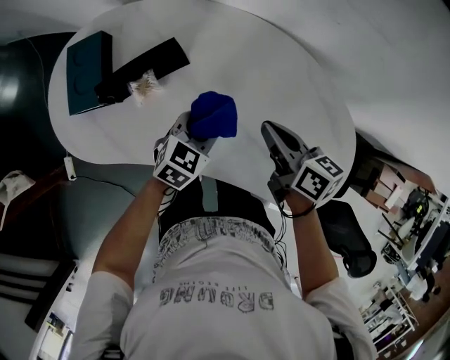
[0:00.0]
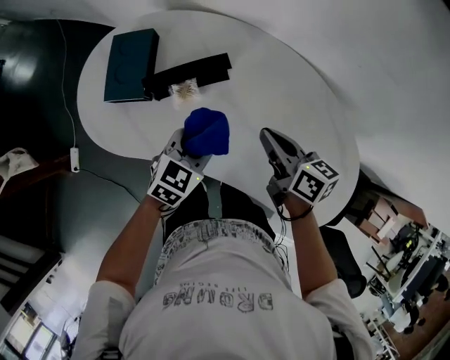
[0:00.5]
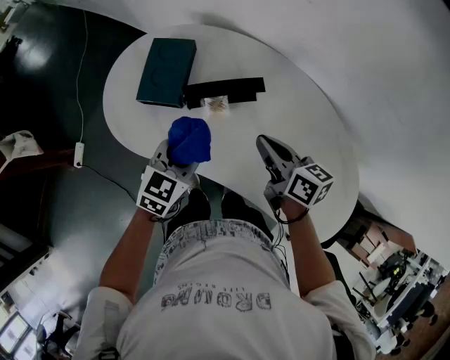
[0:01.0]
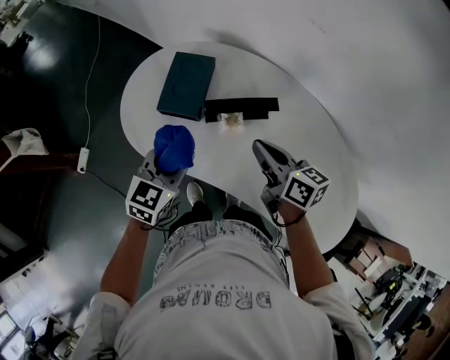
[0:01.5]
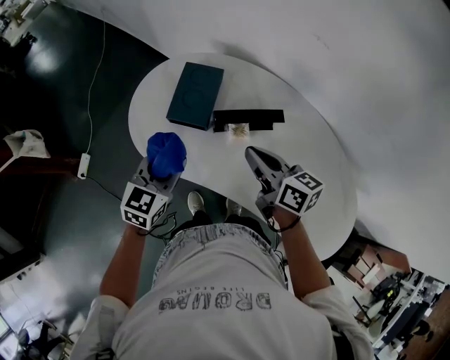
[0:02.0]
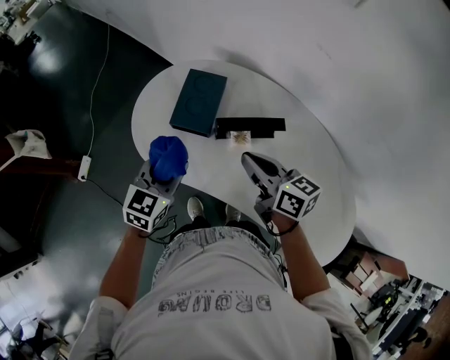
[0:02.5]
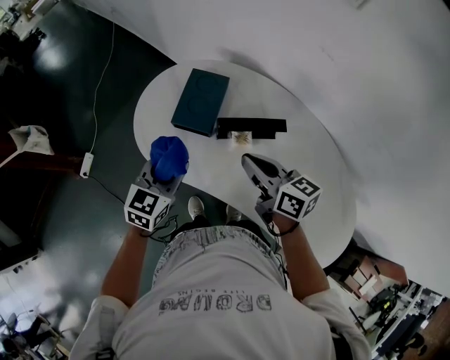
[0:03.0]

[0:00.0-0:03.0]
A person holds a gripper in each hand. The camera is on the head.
0:00.0 to 0:01.5: The right gripper goes about 25 cm to the left, and swivels some 20 degrees; the left gripper goes some 35 cm to the left and upward, and rotates about 30 degrees.
0:01.5 to 0:03.0: Both grippers travel together to the left, roughly 5 cm.

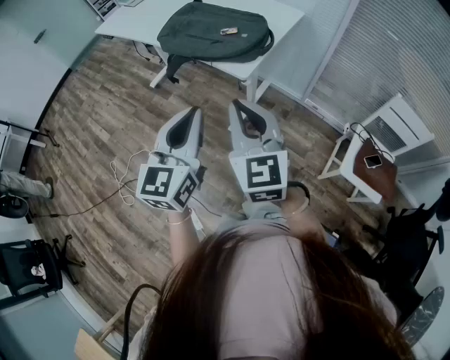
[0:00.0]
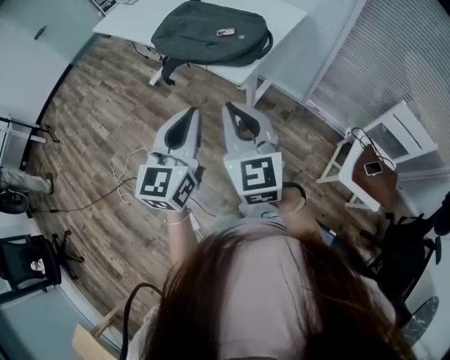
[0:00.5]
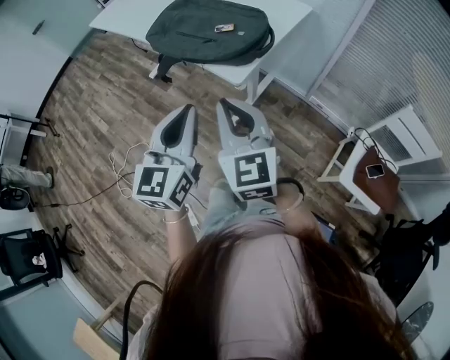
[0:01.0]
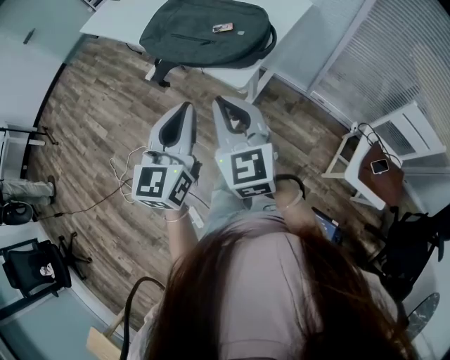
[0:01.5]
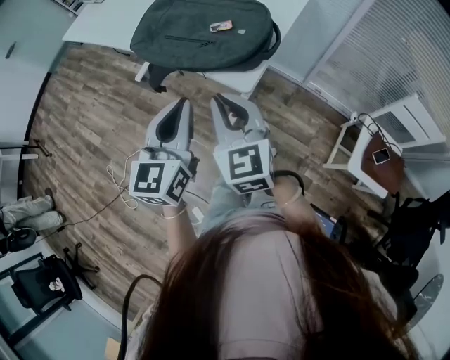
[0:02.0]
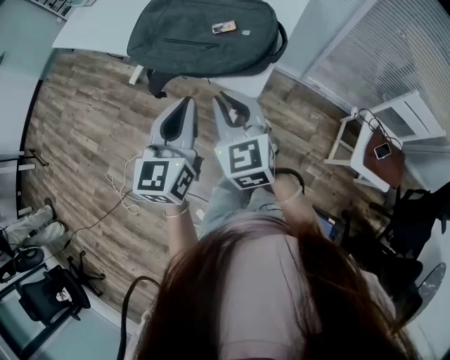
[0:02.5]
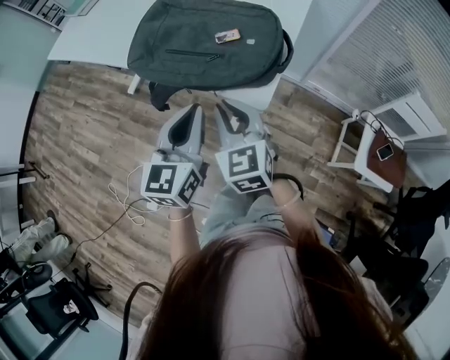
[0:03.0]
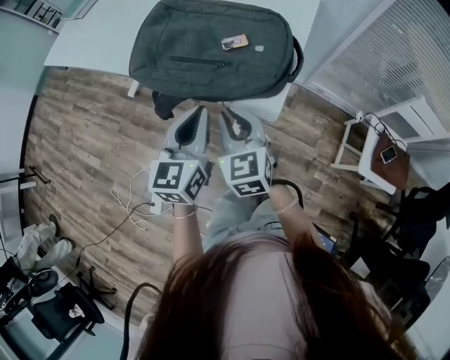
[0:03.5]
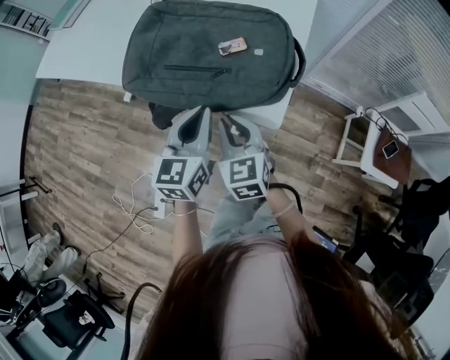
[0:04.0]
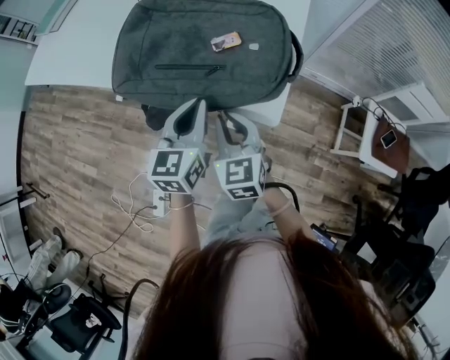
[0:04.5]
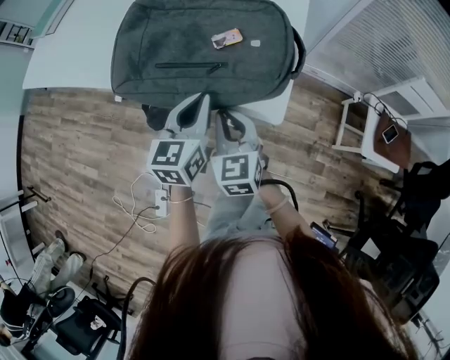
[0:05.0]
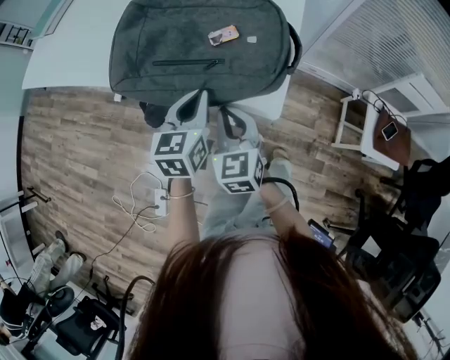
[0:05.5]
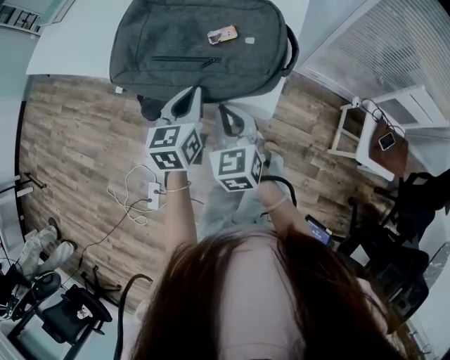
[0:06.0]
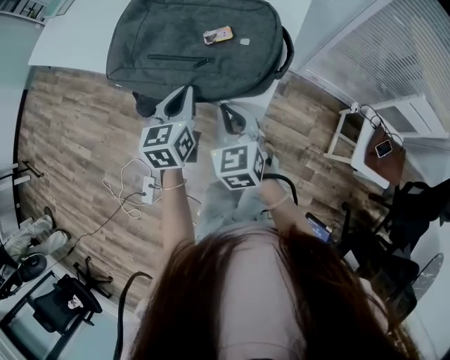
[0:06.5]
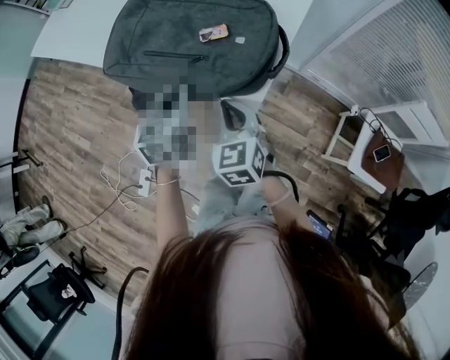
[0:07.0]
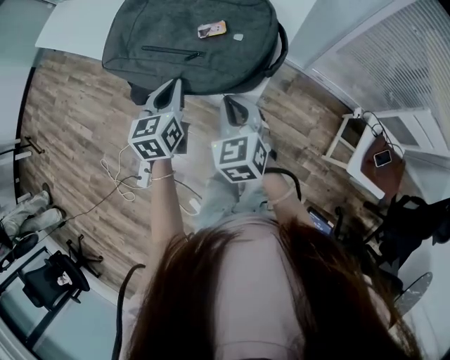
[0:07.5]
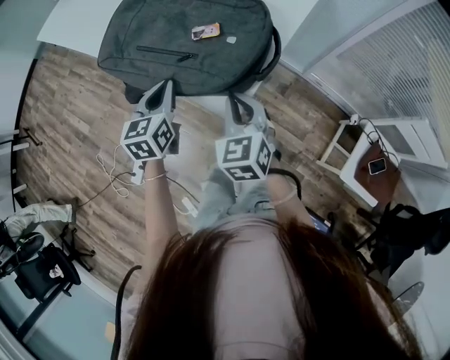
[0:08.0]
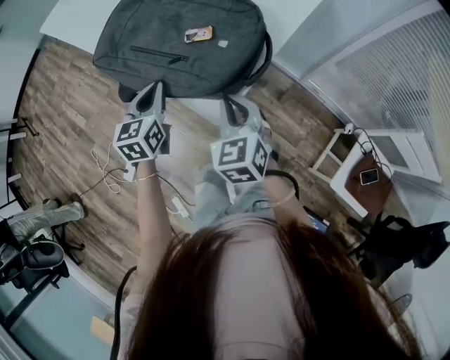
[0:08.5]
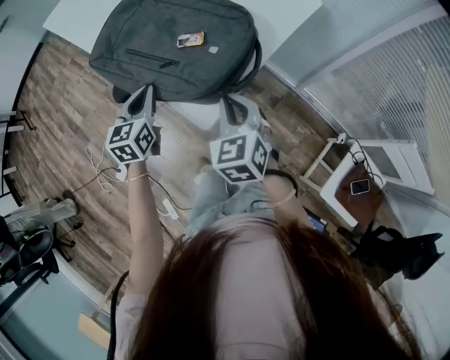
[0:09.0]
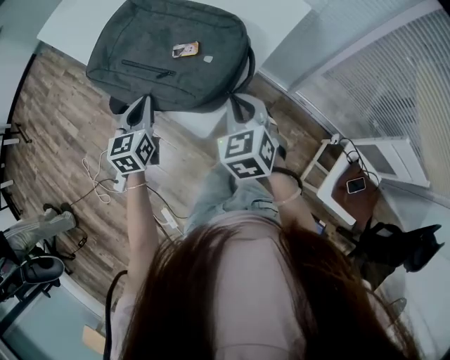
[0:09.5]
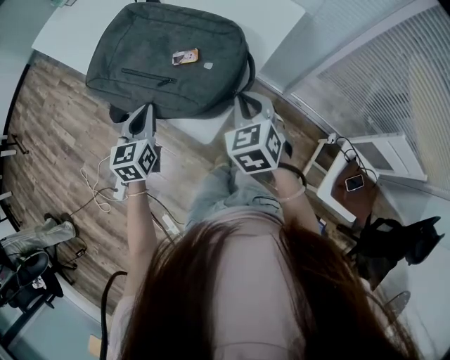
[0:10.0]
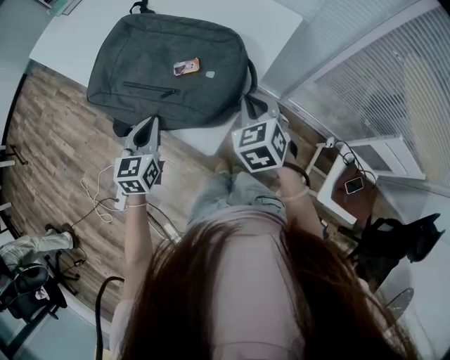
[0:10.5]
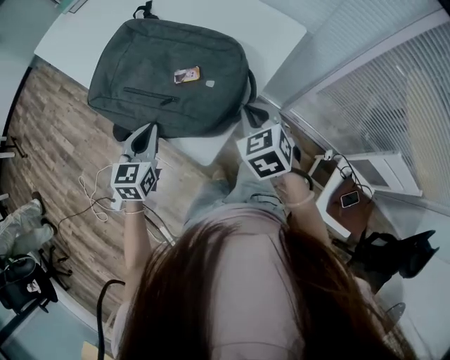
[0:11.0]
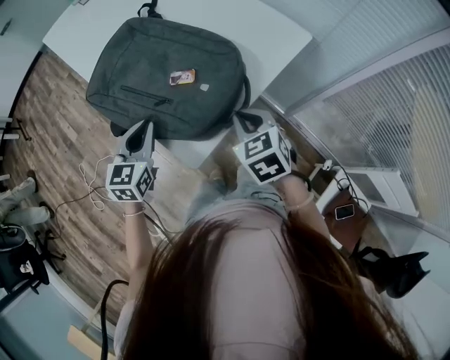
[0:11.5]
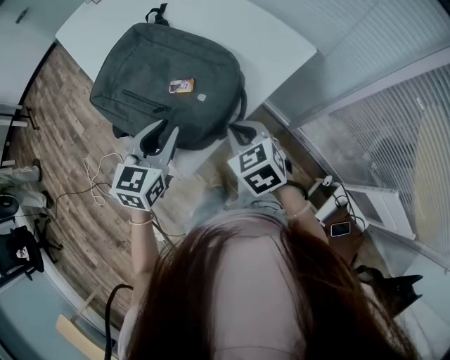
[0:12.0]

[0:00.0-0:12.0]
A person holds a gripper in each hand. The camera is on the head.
0:00.0 to 0:02.0: The left gripper is displaced forward by approximately 20 cm; the right gripper shifts some 20 cm forward and downward.
0:02.0 to 0:04.0: The right gripper goes approximately 20 cm downward, forward and to the left, while the left gripper goes roughly 20 cm forward and downward.
0:04.0 to 0:06.0: The left gripper ends up some 5 cm from where it was.
0:06.0 to 0:08.0: The right gripper moves to the right, some 10 cm.
0:08.0 to 0:10.0: The right gripper moves to the right and forward, roughly 10 cm.
0:10.0 to 0:12.0: The left gripper shifts some 15 cm to the right and upward, and opens up, while the right gripper turns by roughly 30 degrees.

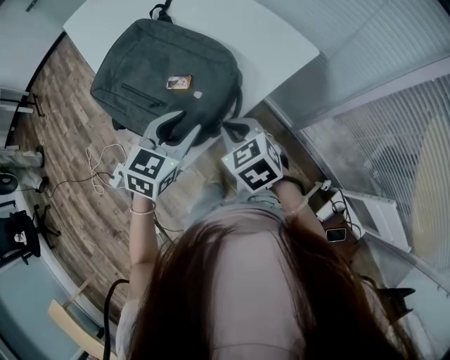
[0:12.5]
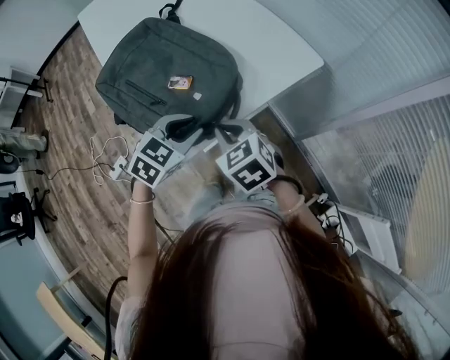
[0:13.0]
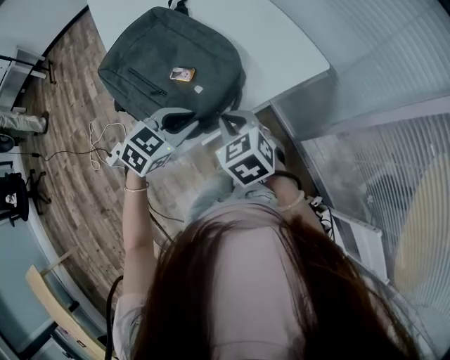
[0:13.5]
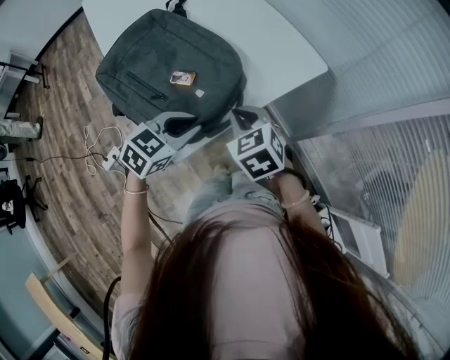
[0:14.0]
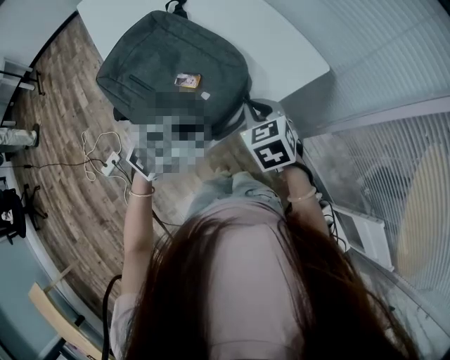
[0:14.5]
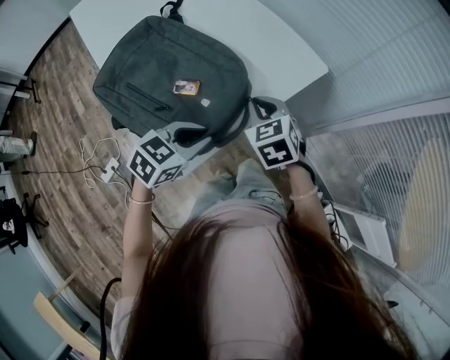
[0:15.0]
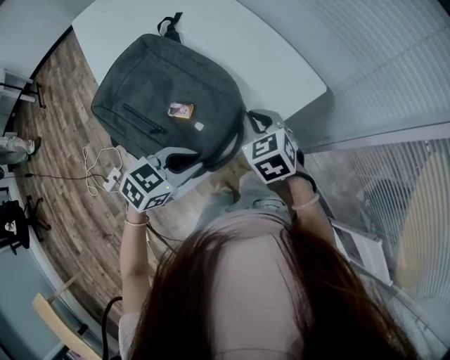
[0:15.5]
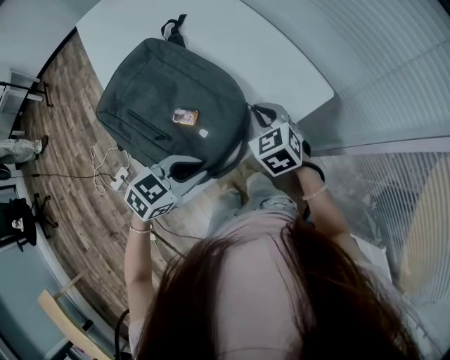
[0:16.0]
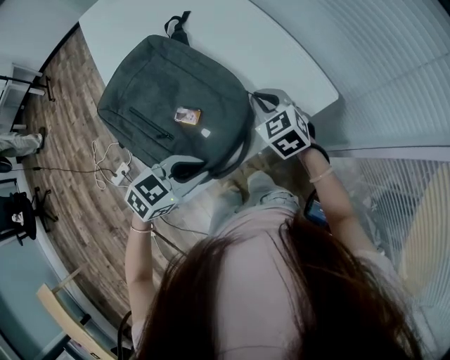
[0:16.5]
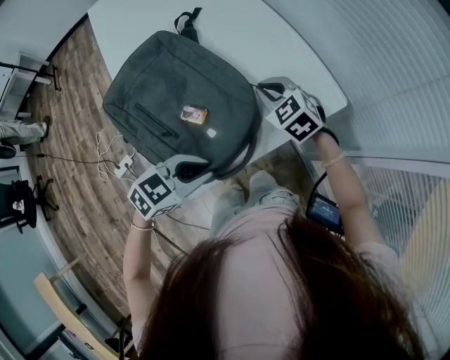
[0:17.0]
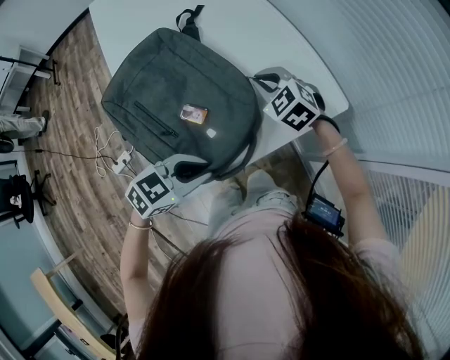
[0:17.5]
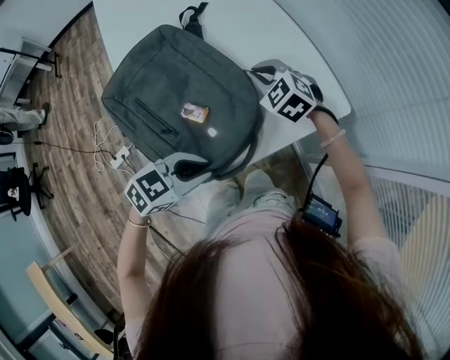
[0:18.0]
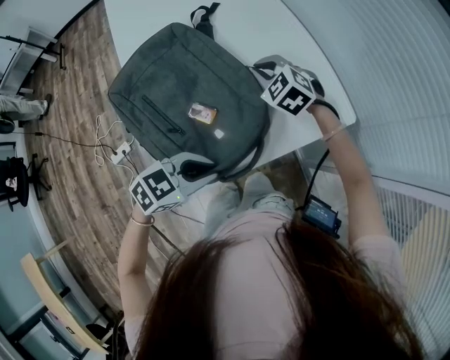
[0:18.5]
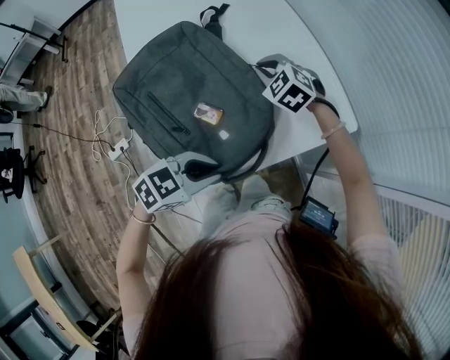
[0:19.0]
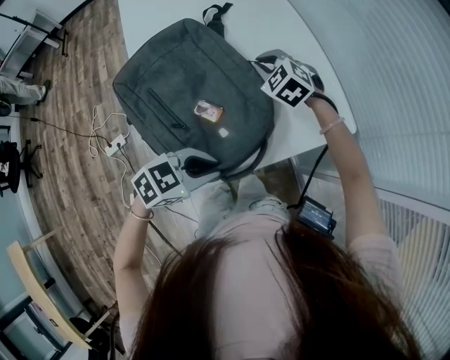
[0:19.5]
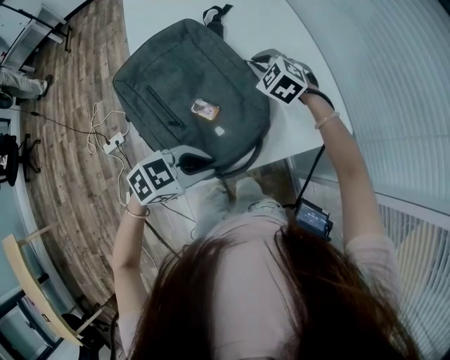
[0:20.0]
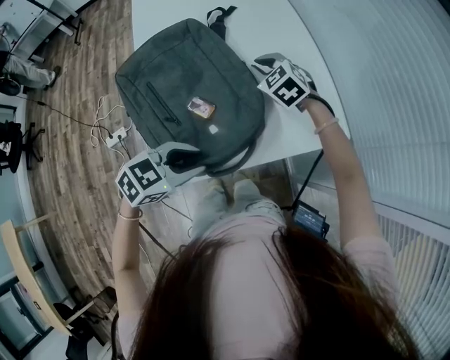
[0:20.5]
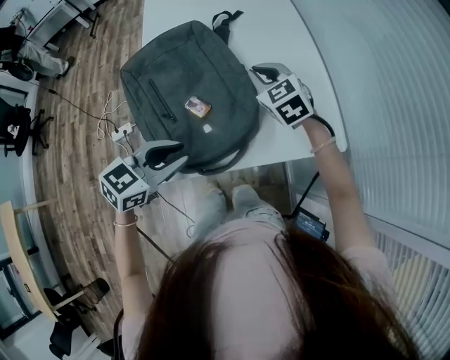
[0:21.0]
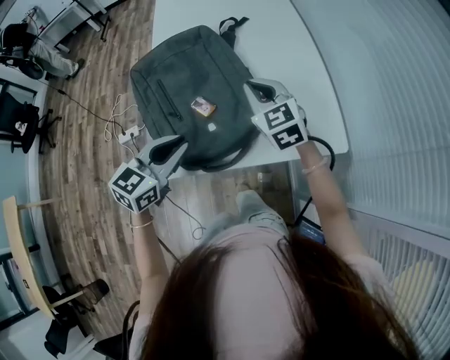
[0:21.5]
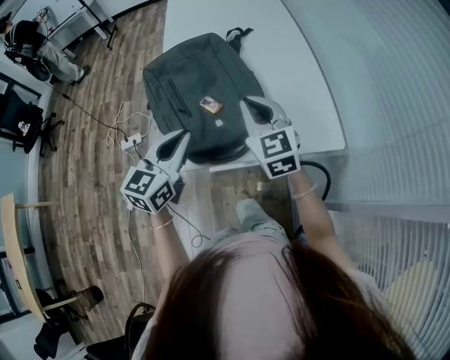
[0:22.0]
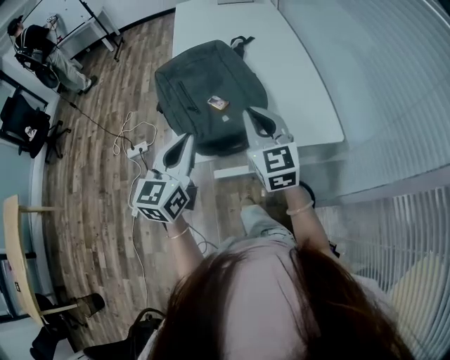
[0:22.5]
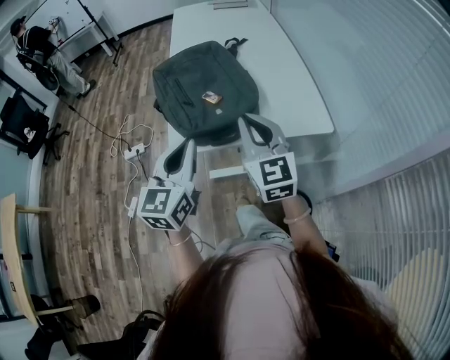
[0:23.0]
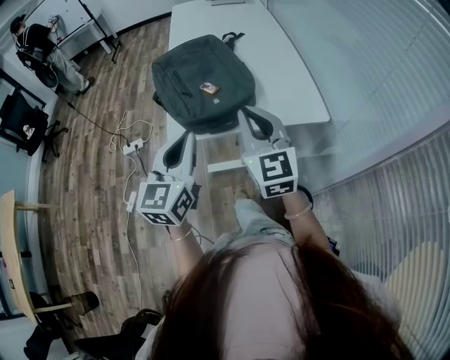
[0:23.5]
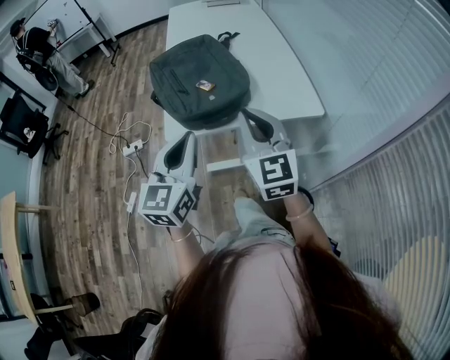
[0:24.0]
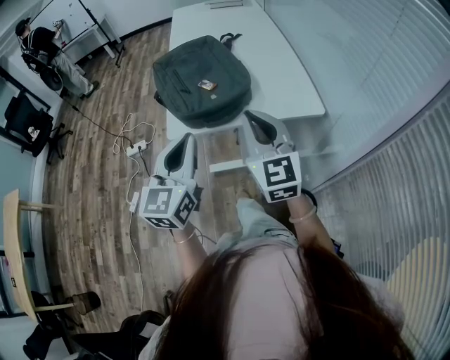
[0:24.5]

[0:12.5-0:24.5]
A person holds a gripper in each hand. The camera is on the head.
0:12.5 to 0:14.5: The left gripper closes up; the right gripper travels forward by some 10 cm.
0:14.5 to 0:16.5: The right gripper moves forward, some 15 cm.
0:16.5 to 0:18.5: The right gripper shifts approximately 10 cm to the left and forward, and swivels approximately 30 degrees.
0:18.5 to 0:20.5: The grippers stay close to where they were, moving slightly.
0:20.5 to 0:22.5: The right gripper shifts by some 30 cm, and tips its fingers upward by approximately 40 degrees, while the left gripper is displaced upward by approximately 15 cm, tips its fingers upward by about 30 degrees, and closes its fingers.
0:22.5 to 0:24.5: The two grippers go about 15 cm backward.
